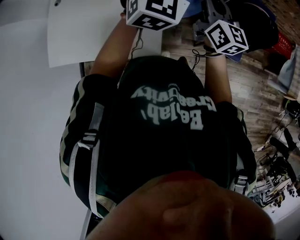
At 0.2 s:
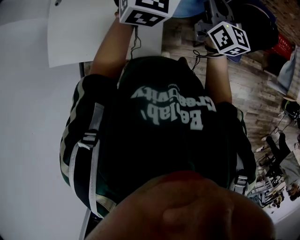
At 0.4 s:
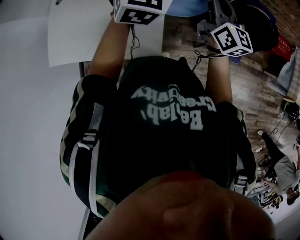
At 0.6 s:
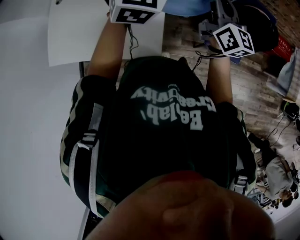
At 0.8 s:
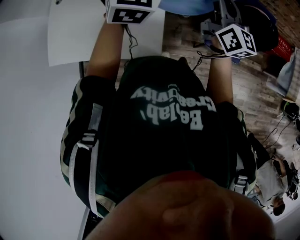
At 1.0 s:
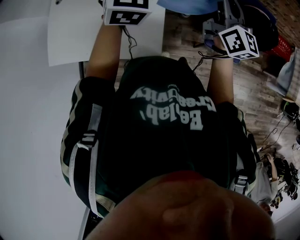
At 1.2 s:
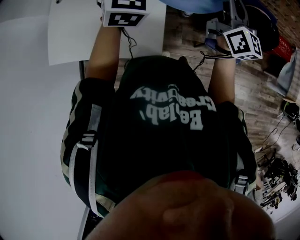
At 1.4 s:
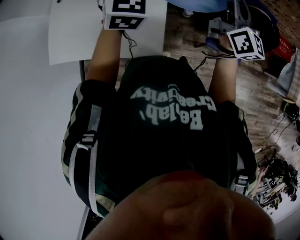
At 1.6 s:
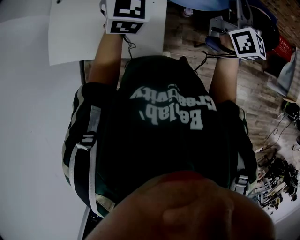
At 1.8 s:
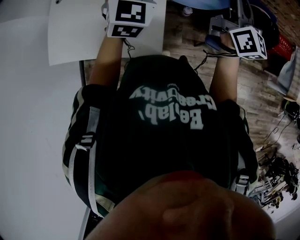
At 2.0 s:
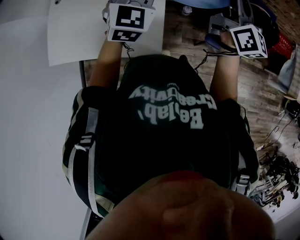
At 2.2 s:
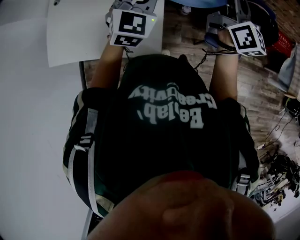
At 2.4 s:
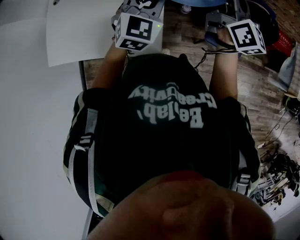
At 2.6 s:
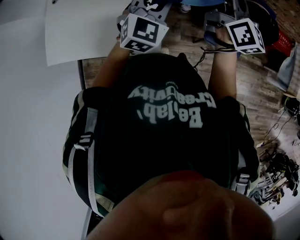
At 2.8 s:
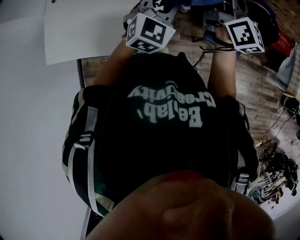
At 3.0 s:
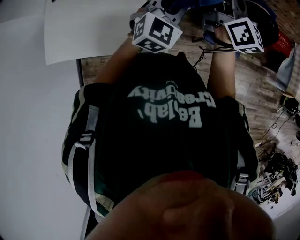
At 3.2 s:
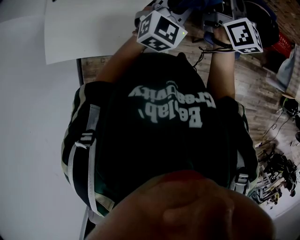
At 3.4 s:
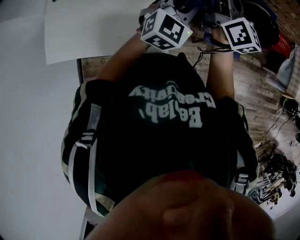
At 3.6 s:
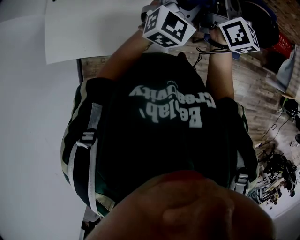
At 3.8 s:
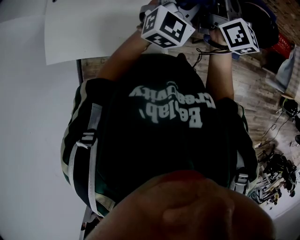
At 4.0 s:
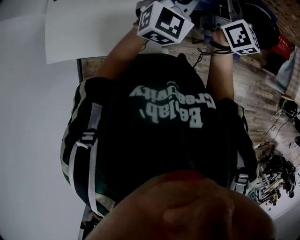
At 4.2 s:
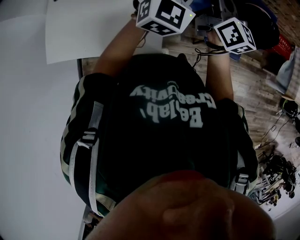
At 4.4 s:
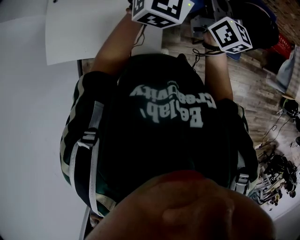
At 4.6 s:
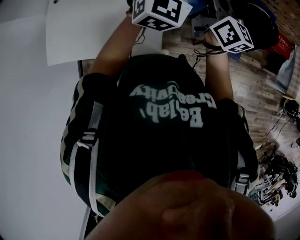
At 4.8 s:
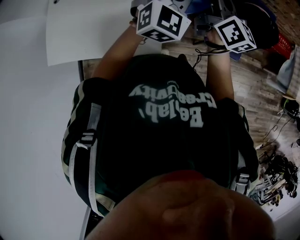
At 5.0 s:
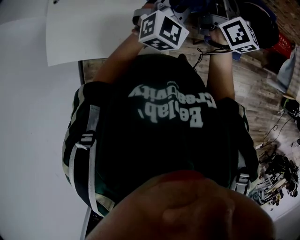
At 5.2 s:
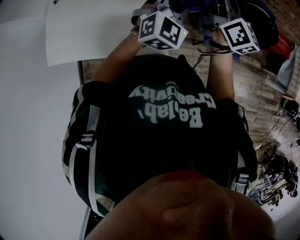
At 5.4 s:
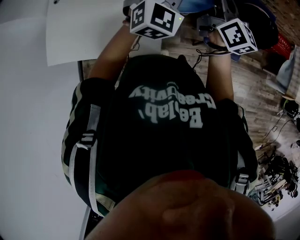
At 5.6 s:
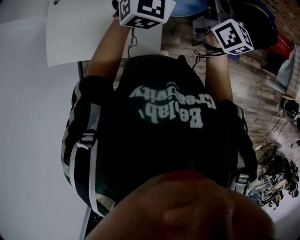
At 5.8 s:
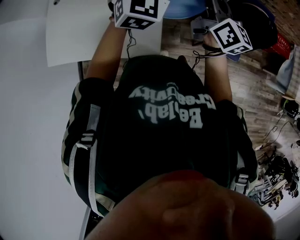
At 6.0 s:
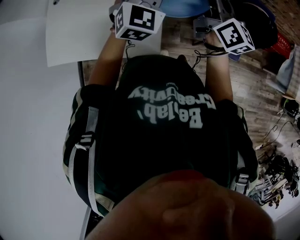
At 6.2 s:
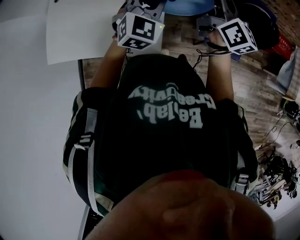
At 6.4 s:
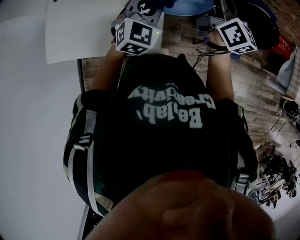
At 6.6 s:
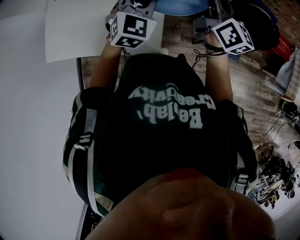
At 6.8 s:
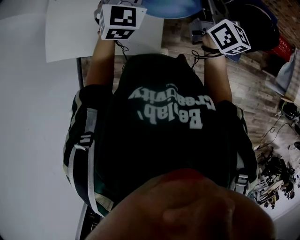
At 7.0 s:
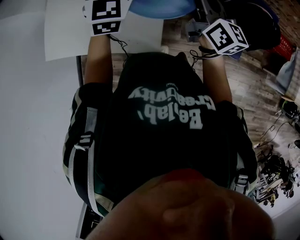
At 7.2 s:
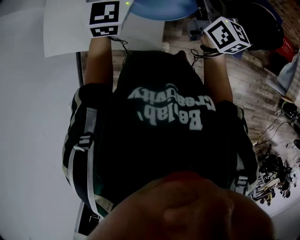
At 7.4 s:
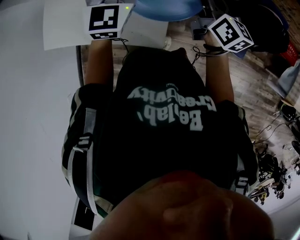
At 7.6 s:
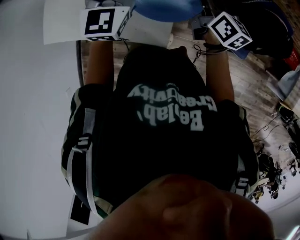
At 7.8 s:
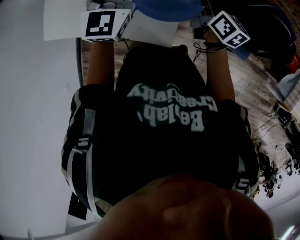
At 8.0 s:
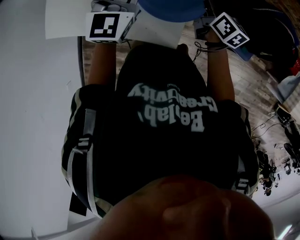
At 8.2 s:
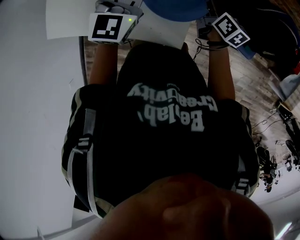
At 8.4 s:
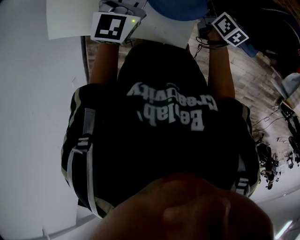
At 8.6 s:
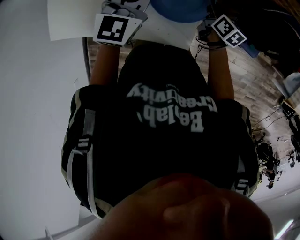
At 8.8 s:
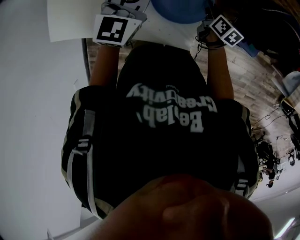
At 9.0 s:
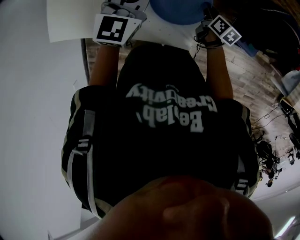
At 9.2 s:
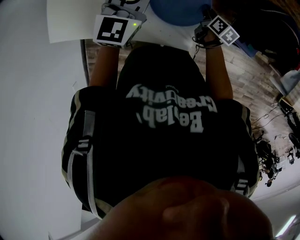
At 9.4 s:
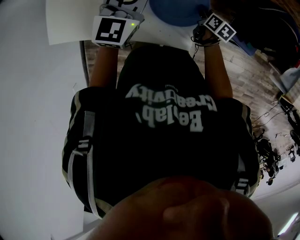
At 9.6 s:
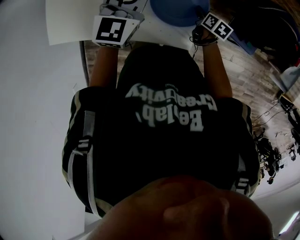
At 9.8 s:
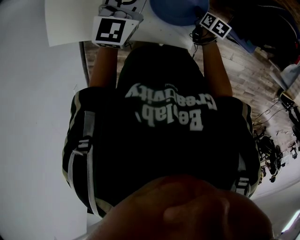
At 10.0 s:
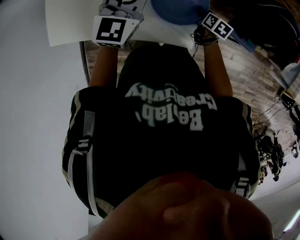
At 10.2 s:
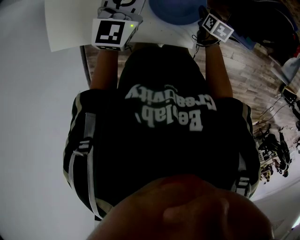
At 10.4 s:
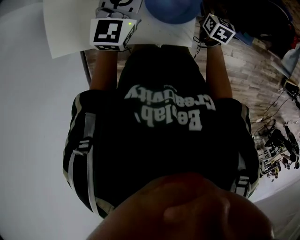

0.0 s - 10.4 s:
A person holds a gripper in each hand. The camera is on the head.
0.0 s - 1.4 s: The left gripper goes some 10 cm to the left. Meanwhile the right gripper heads upward, covering roughly 5 cm.
1.4 s - 3.0 s: The left gripper is displaced downward, to the right and backward by approximately 15 cm, and changes its angle by approximately 20 degrees.
3.0 s - 4.4 s: The left gripper heads upward and forward, covering about 15 cm. Meanwhile the right gripper changes place by about 5 cm.
4.4 s - 6.0 s: The left gripper moves up and down over approximately 10 cm, changing direction 2 times.
6.0 s - 7.4 s: The left gripper heads to the left, covering approximately 15 cm. The right gripper heads to the left and downward, covering some 10 cm.
7.4 s - 9.0 s: The right gripper moves downward, roughly 25 cm, and points its fingers approximately 30 degrees further downward. Meanwhile the left gripper is displaced downward and to the left by approximately 15 cm.
9.0 s - 10.4 s: The right gripper ends up about 5 cm from where it was, changes its angle by approximately 30 degrees, and opens up.

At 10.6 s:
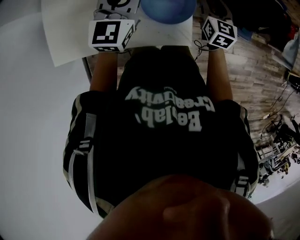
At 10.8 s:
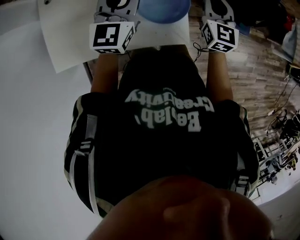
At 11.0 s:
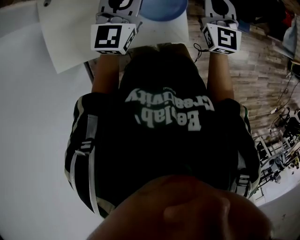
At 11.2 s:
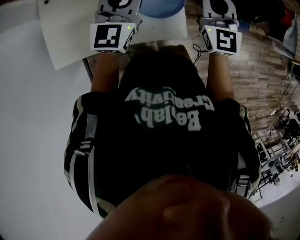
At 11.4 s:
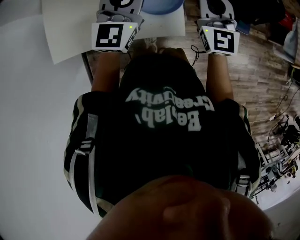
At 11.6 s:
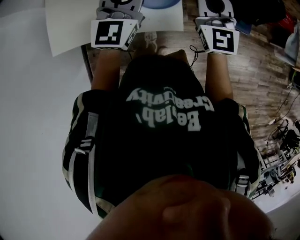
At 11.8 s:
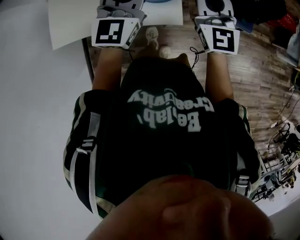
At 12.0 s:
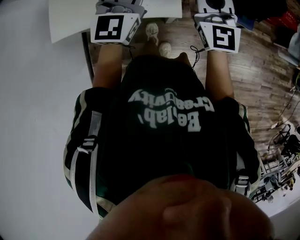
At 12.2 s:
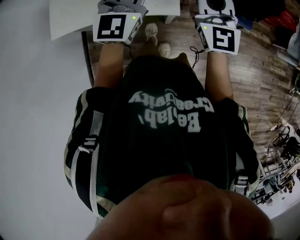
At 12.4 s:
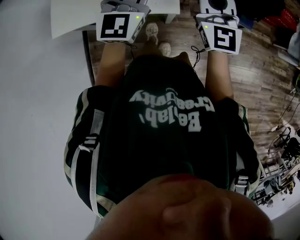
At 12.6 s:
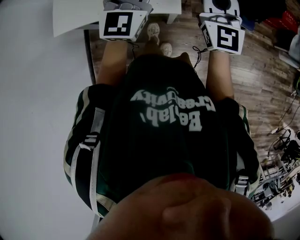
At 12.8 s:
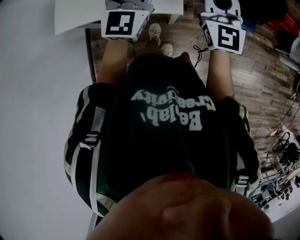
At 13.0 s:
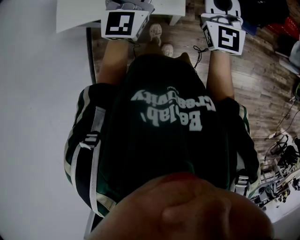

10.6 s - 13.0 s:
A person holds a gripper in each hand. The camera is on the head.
10.6 s - 11.8 s: The right gripper goes some 25 cm upward and backward, swivels roughly 30 degrees, and closes; the left gripper shifts about 20 cm backward, to the right and upward.
11.8 s - 13.0 s: Both grippers move backward, about 10 cm.

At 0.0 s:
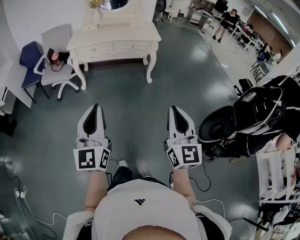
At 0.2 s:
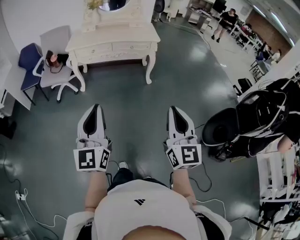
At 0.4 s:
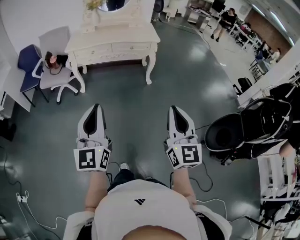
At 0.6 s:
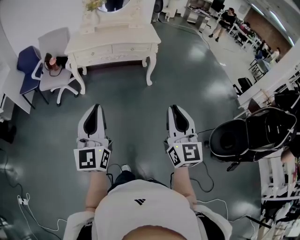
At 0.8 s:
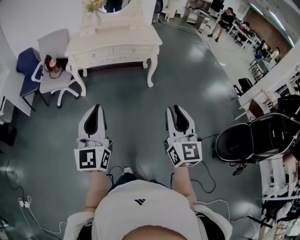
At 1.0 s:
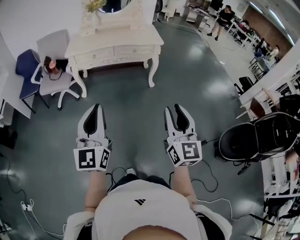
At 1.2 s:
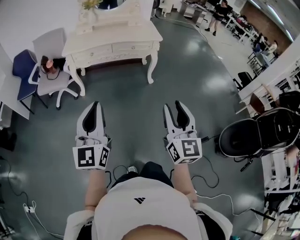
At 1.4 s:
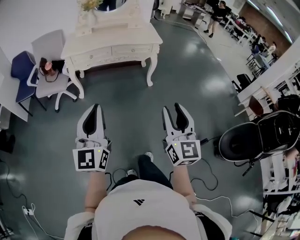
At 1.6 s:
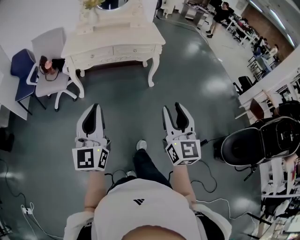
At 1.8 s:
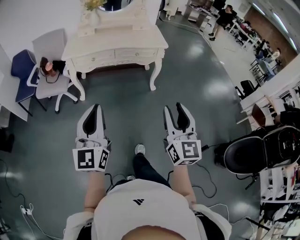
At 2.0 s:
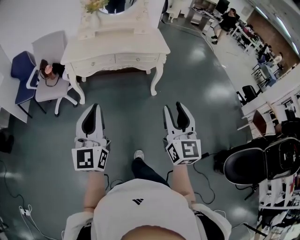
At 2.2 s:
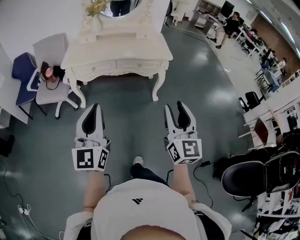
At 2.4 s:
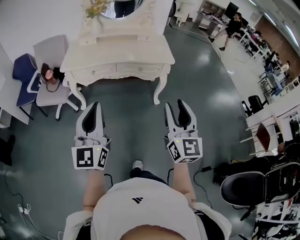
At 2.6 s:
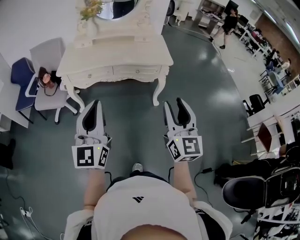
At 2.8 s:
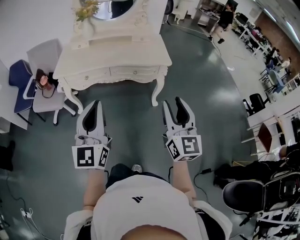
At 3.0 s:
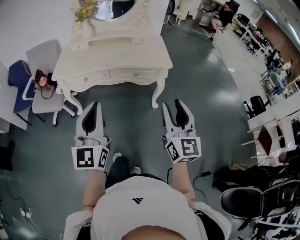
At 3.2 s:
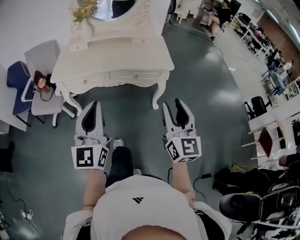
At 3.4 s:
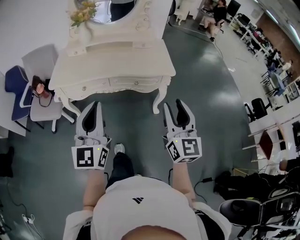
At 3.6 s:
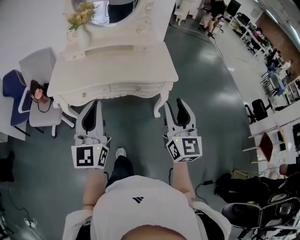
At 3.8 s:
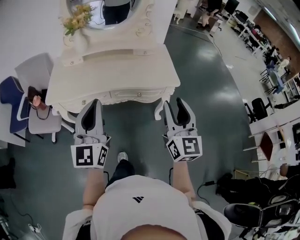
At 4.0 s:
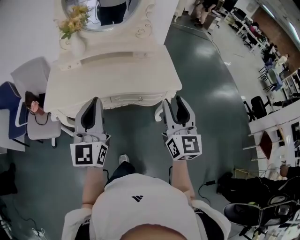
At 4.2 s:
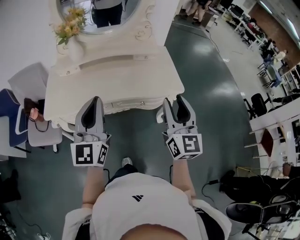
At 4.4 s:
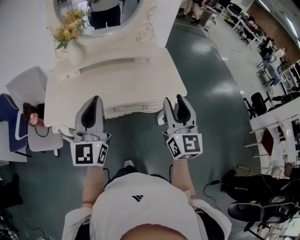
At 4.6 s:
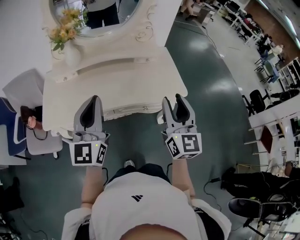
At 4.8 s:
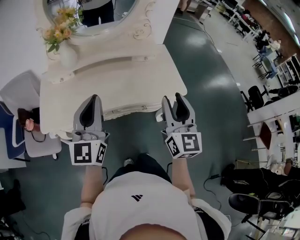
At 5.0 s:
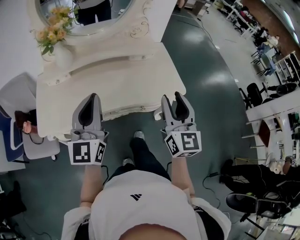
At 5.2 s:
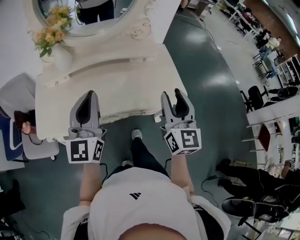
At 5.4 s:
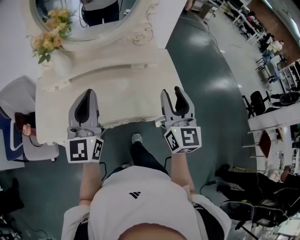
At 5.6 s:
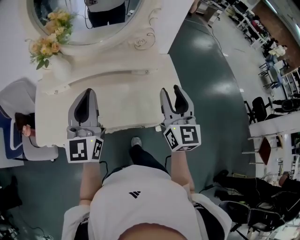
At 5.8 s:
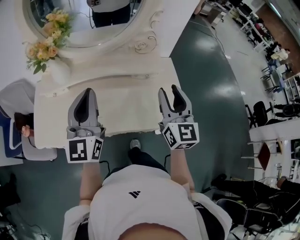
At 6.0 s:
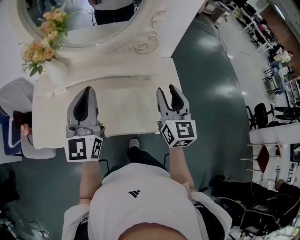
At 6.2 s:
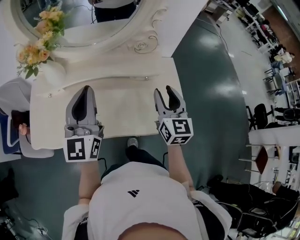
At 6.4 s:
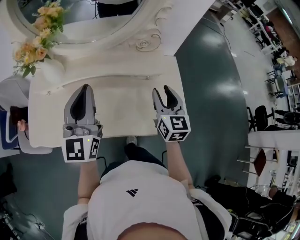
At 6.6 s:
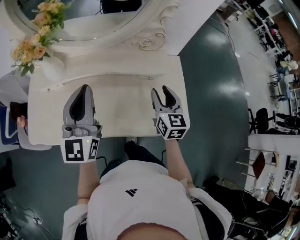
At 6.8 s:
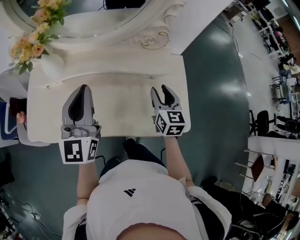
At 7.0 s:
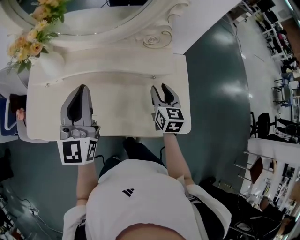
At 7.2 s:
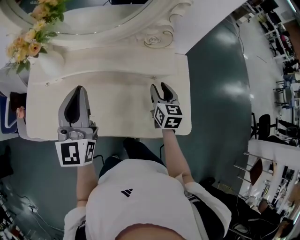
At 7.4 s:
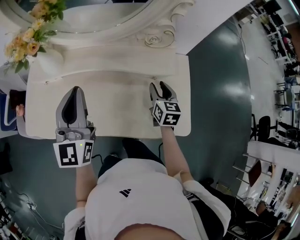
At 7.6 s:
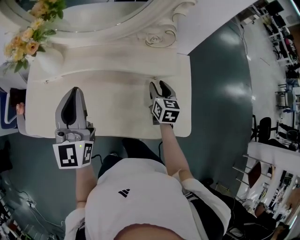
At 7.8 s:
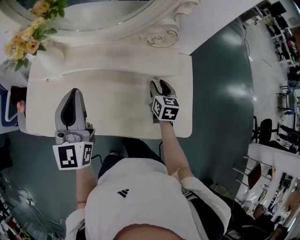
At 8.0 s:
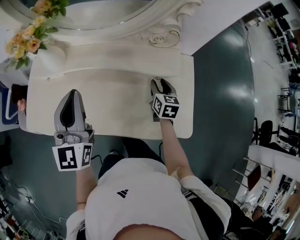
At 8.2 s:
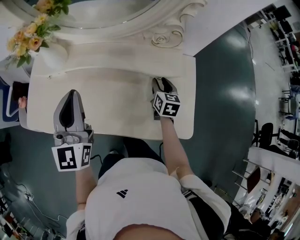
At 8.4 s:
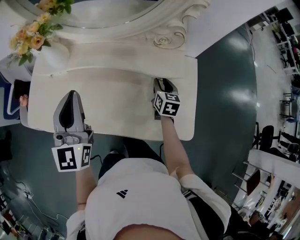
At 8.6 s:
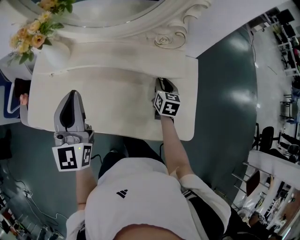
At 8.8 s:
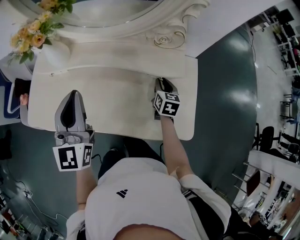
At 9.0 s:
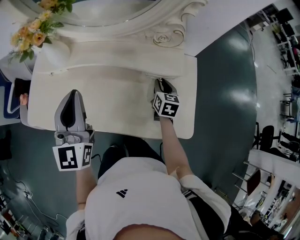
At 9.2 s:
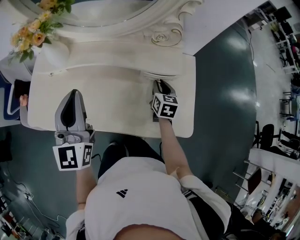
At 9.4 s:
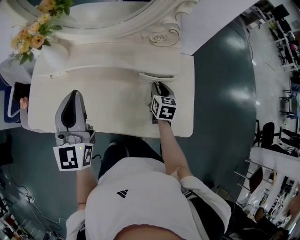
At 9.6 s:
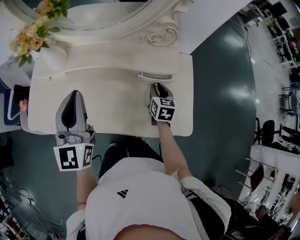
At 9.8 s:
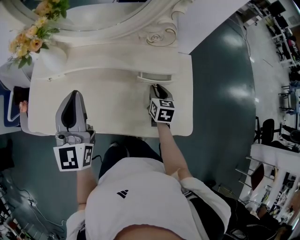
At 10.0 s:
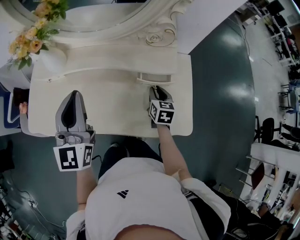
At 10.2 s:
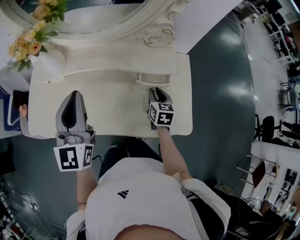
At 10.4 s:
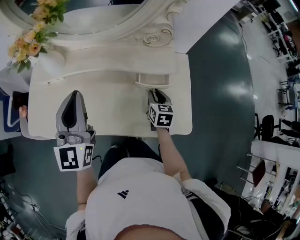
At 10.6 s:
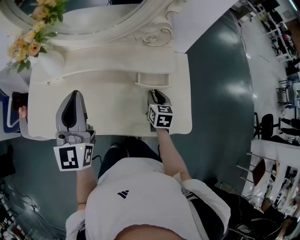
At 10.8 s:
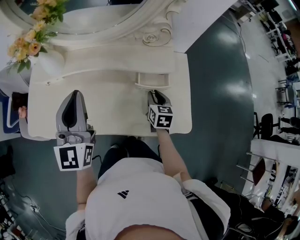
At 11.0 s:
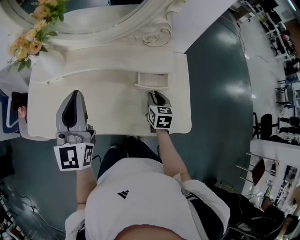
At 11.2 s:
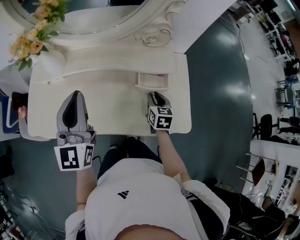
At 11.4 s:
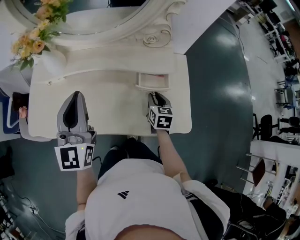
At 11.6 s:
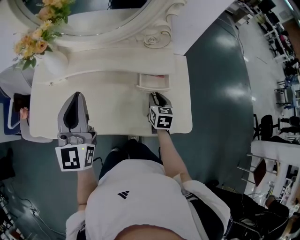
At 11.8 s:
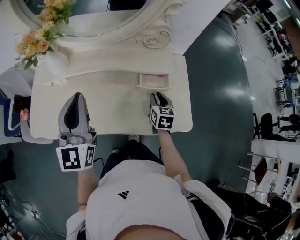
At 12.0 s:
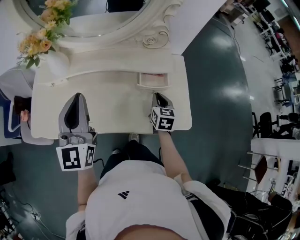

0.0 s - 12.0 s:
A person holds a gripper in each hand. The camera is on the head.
0.0 s - 1.6 s: The two grippers go about 15 cm forward and to the left. The right gripper opens.
1.6 s - 3.0 s: Both grippers travel together forward, about 30 cm.
3.0 s - 4.4 s: Both grippers travel together forward, about 35 cm.
4.4 s - 6.0 s: The grippers both shift forward by approximately 25 cm.
6.0 s - 7.6 s: The right gripper shifts roughly 25 cm downward and forward, and turns by about 30 degrees, while the left gripper travels forward by some 5 cm.
7.6 s - 9.0 s: The grippers make only small movements.
9.0 s - 10.4 s: The right gripper travels backward by about 5 cm.
10.4 s - 12.0 s: The grippers make only small movements.
